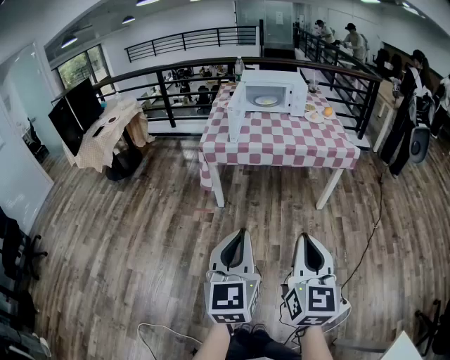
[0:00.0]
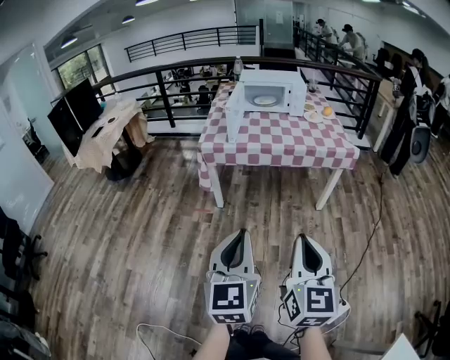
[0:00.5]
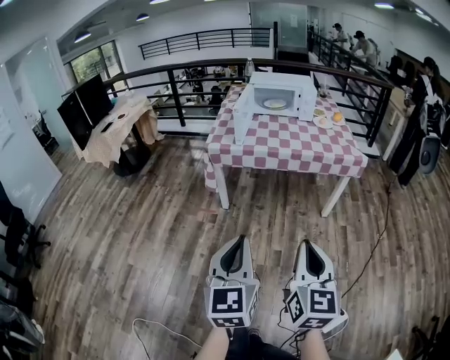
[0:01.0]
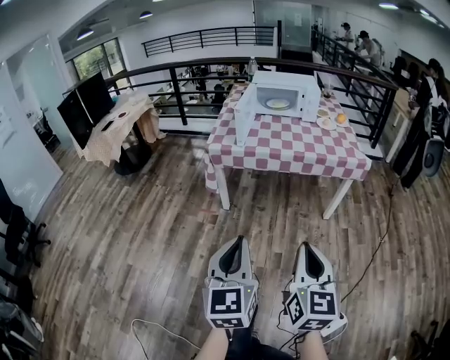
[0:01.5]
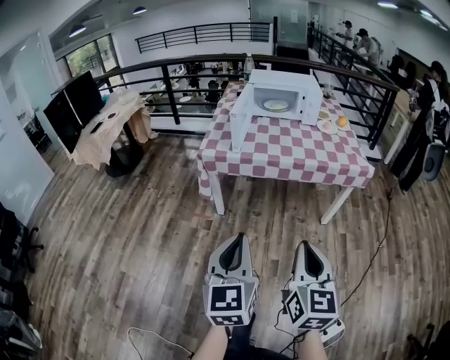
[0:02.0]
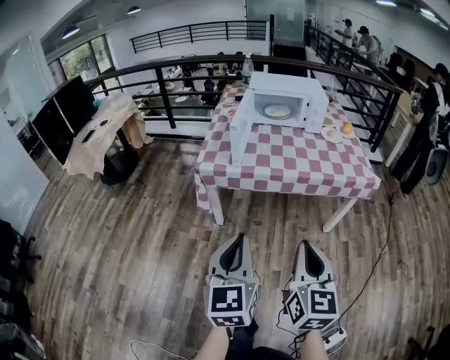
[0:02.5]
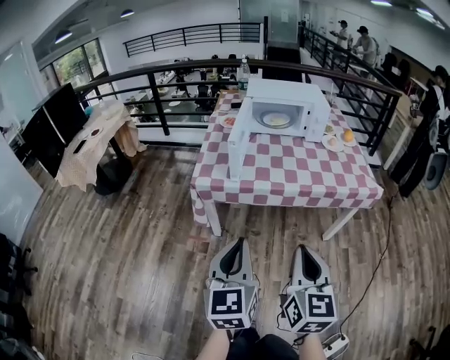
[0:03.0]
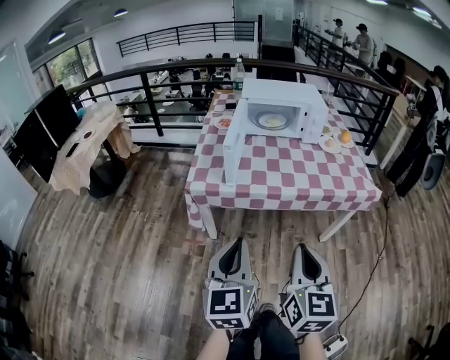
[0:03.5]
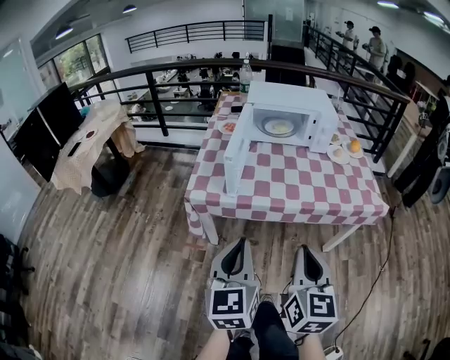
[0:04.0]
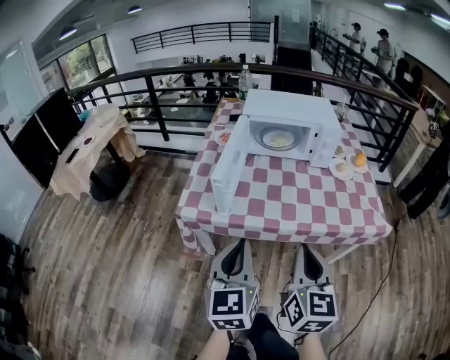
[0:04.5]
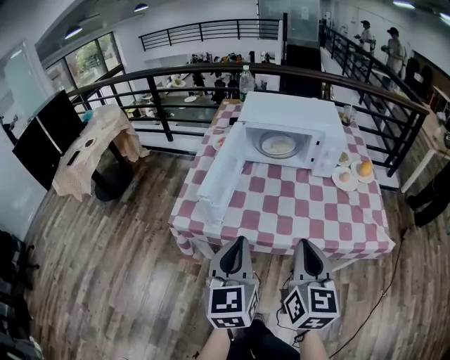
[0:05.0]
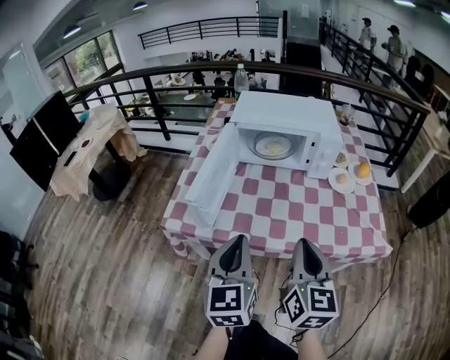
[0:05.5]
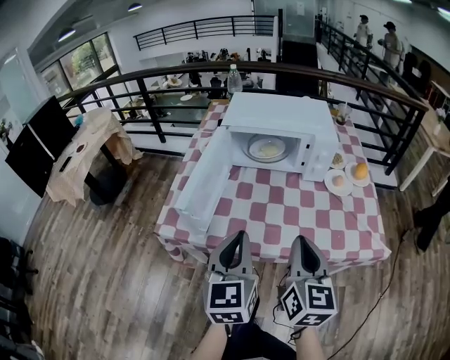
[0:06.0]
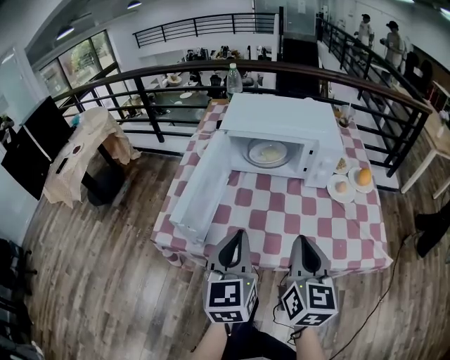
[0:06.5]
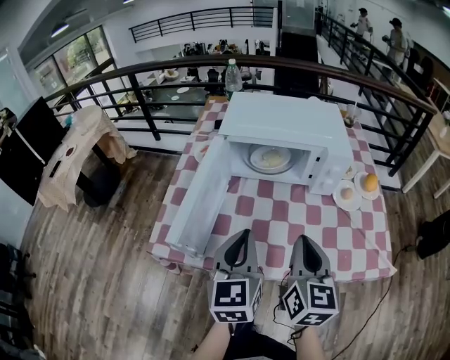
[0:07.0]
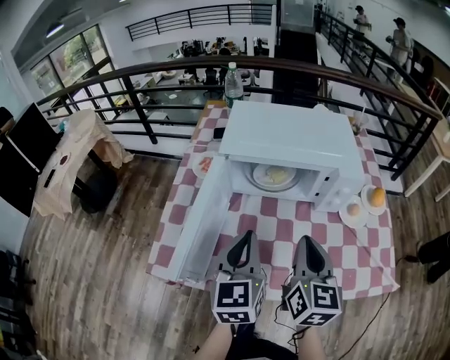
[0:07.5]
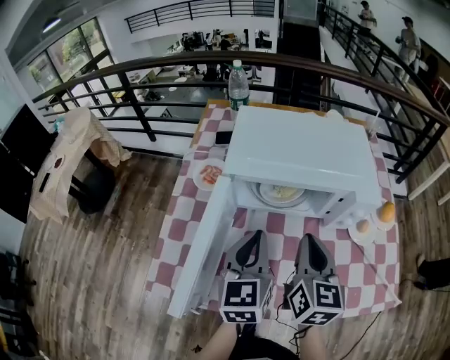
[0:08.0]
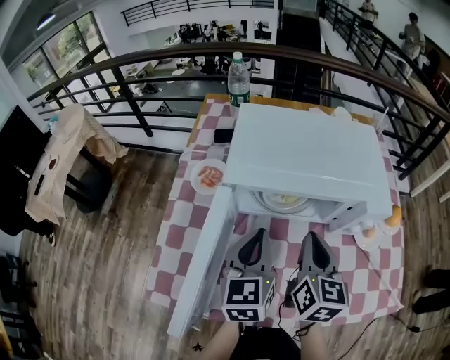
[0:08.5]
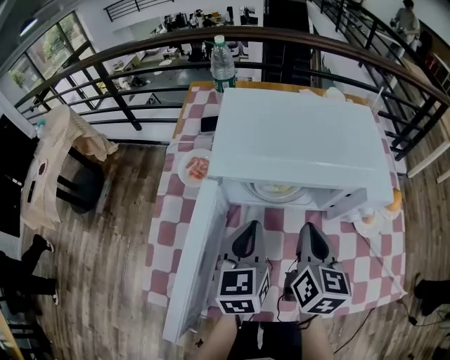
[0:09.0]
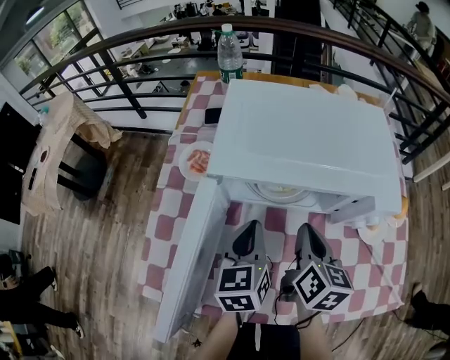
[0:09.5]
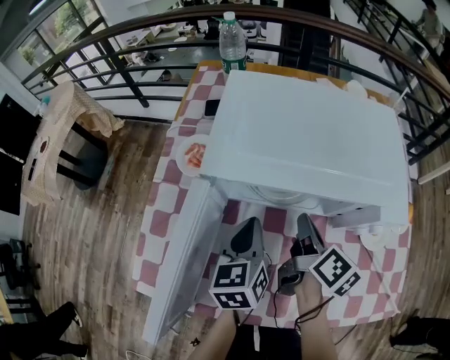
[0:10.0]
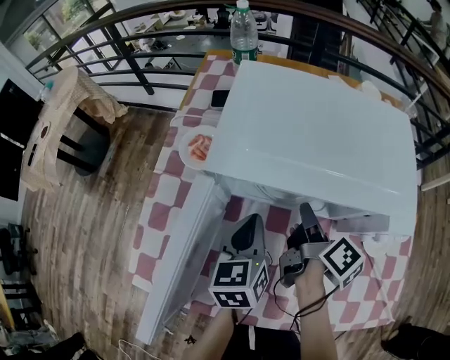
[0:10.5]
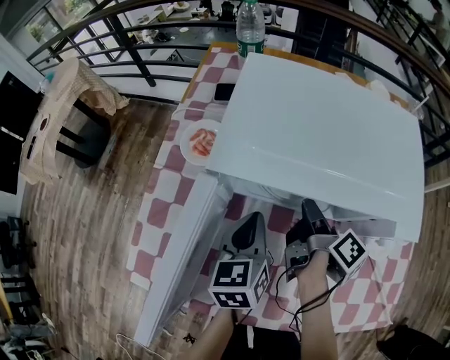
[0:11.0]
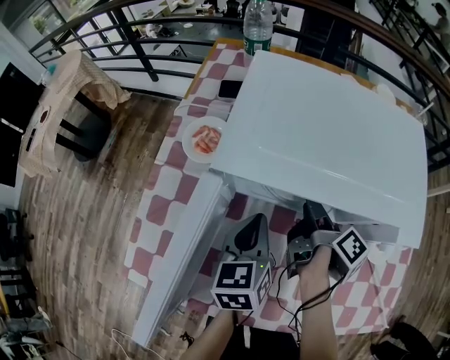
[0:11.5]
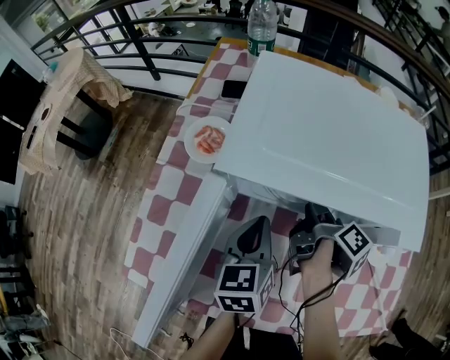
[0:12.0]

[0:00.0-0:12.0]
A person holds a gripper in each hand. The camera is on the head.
0:00.0 to 0:02.0: Both grippers move forward, roughly 15 cm.
0:02.0 to 0:04.0: The two grippers go approximately 25 cm forward.
0:04.0 to 0:06.0: The two grippers go some 25 cm forward and to the right.
0:06.0 to 0:08.0: The two grippers go approximately 25 cm forward.
0:08.0 to 0:10.0: Both grippers travel together downward and forward, some 15 cm. The right gripper rolls clockwise, seen from behind, by about 40 degrees.
0:10.0 to 0:12.0: The right gripper heads downward, covering about 5 cm, swivels about 30 degrees, and opens.

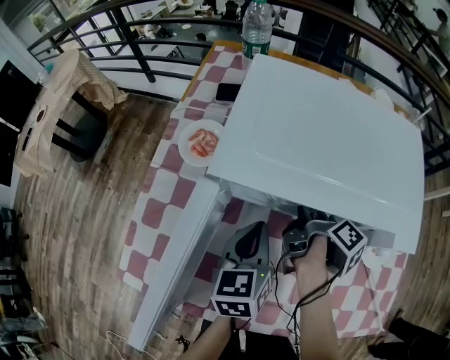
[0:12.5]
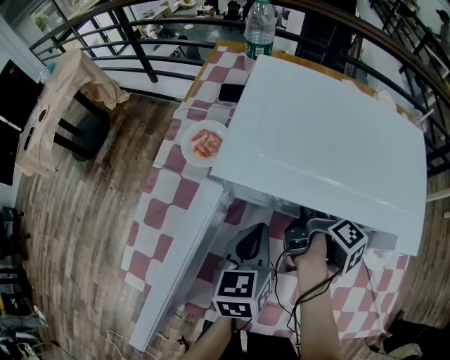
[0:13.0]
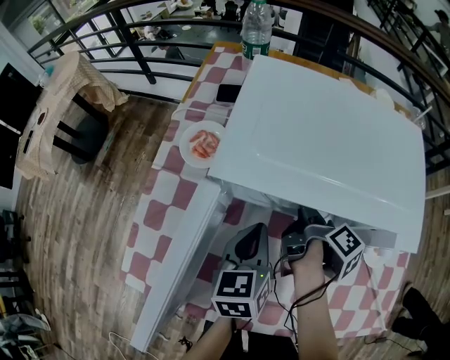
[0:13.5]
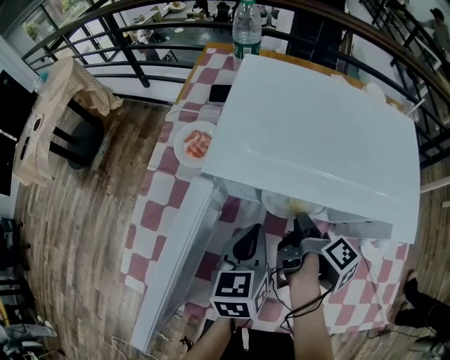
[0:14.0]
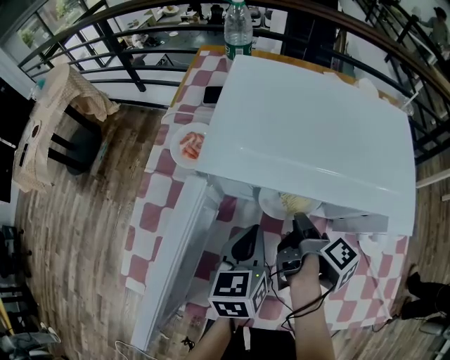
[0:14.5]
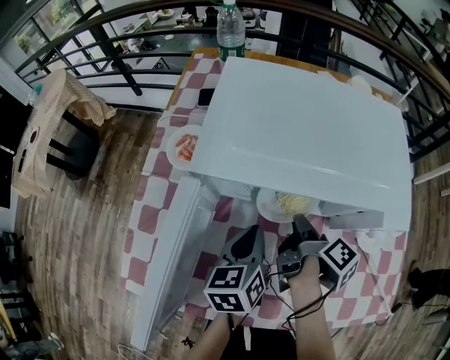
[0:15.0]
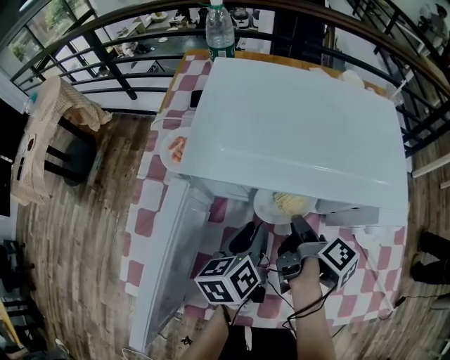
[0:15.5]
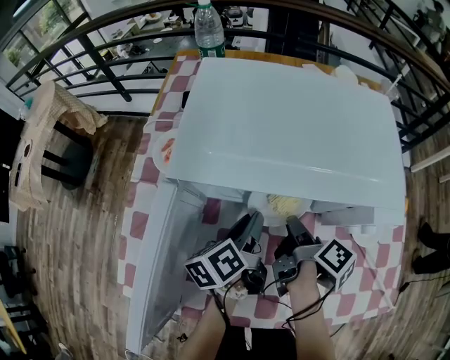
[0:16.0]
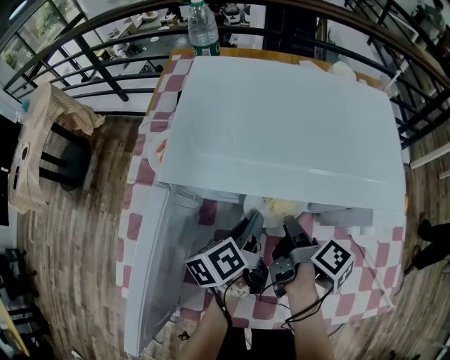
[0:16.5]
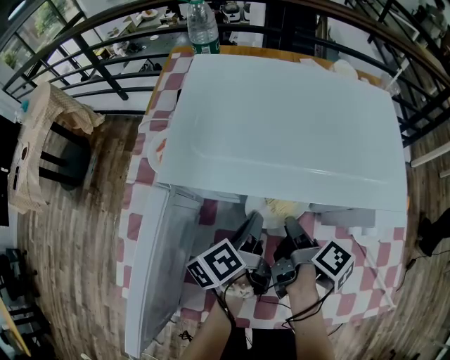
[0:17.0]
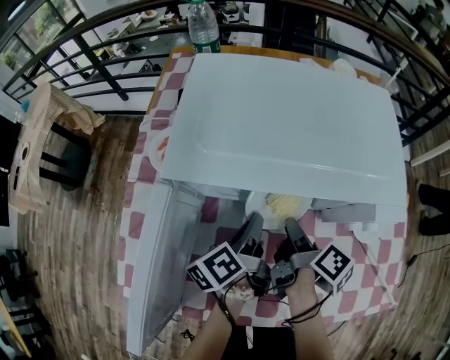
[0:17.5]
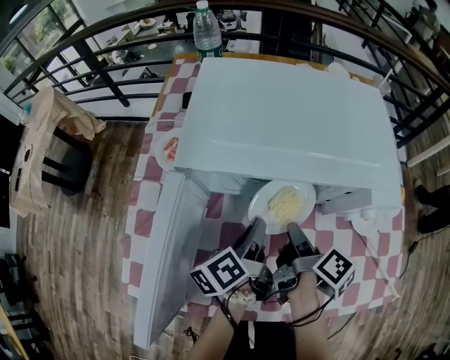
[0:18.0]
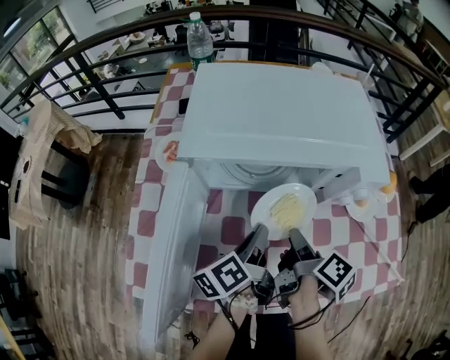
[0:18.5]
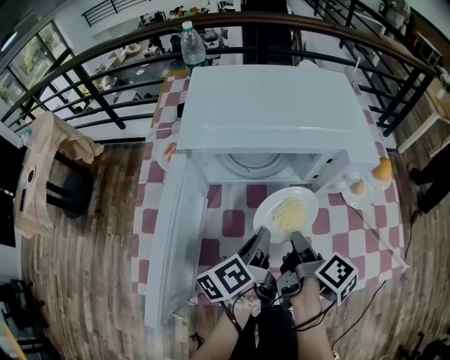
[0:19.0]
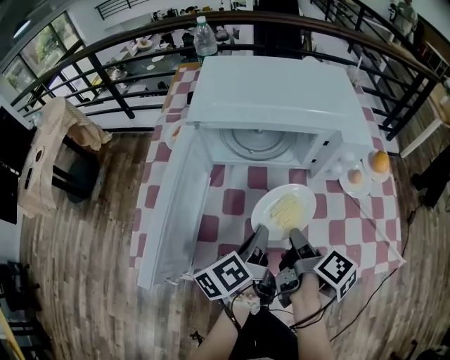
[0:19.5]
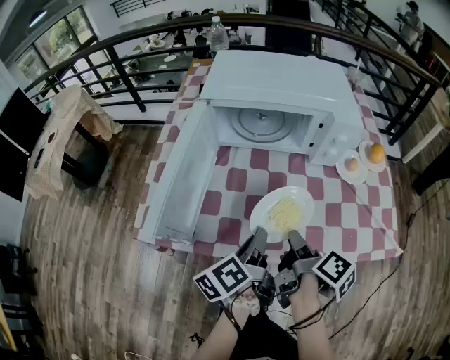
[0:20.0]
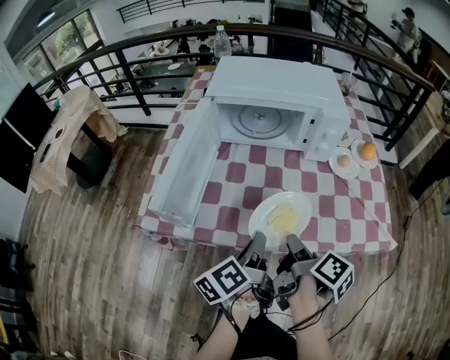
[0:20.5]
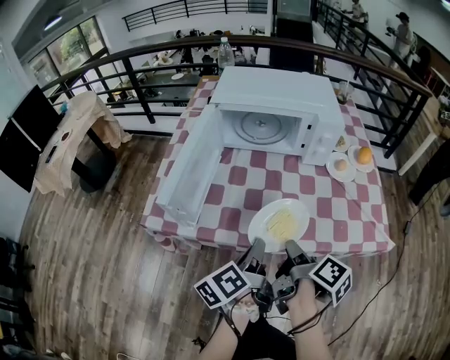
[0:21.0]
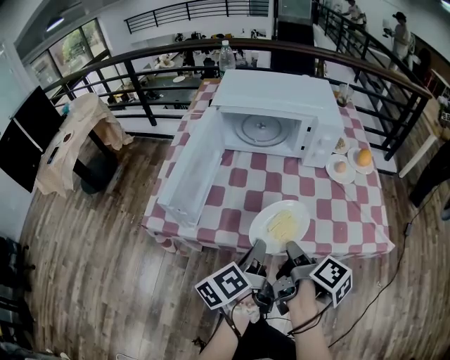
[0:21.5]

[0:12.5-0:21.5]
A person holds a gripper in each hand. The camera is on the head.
0:12.5 to 0:14.5: The right gripper shifts some 5 cm backward, and closes its fingers.
0:14.5 to 0:17.0: The left gripper ends up roughly 5 cm from where it was, twists about 40 degrees counterclockwise, seen from behind, and opens, then closes again.
0:17.0 to 0:19.5: Both grippers travel together backward, some 15 cm.
0:19.5 to 0:21.5: The two grippers go roughly 20 cm backward.

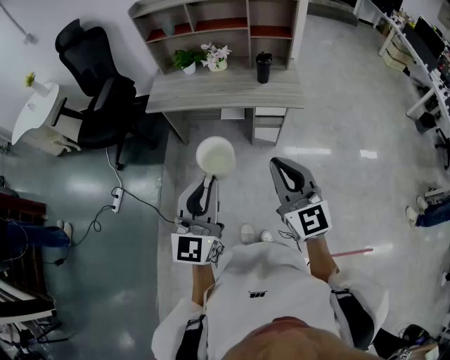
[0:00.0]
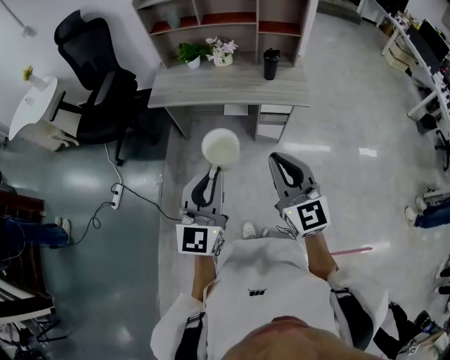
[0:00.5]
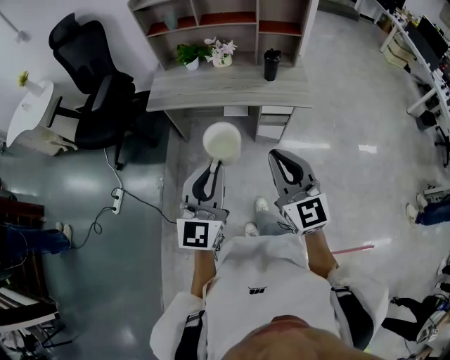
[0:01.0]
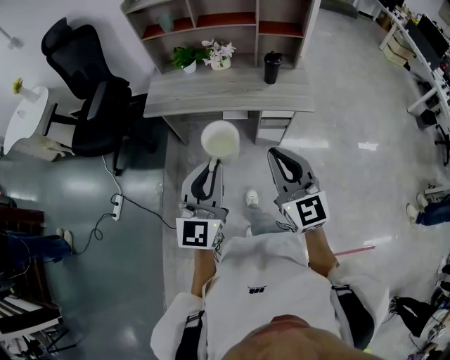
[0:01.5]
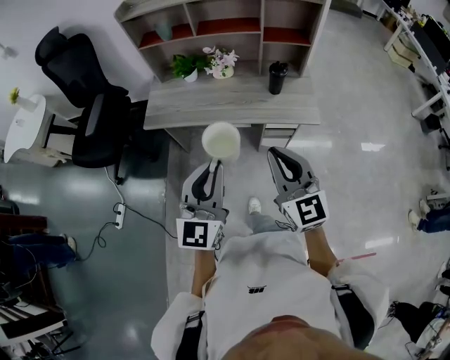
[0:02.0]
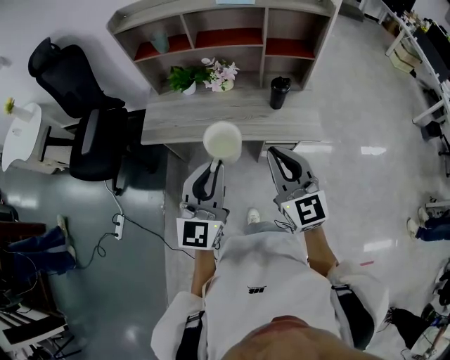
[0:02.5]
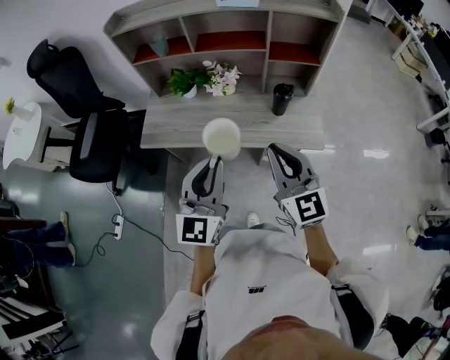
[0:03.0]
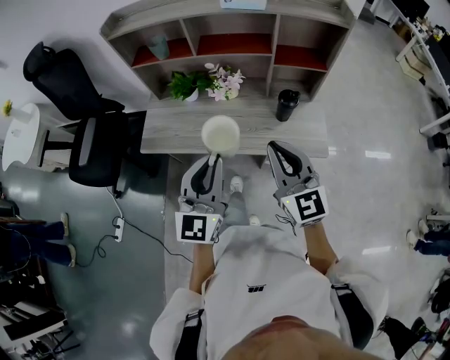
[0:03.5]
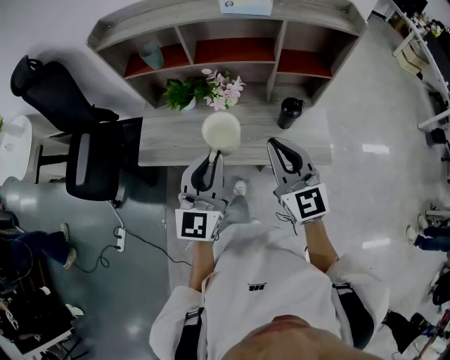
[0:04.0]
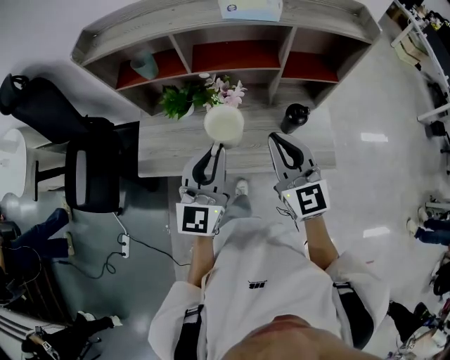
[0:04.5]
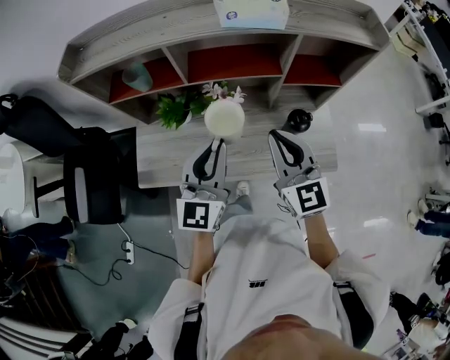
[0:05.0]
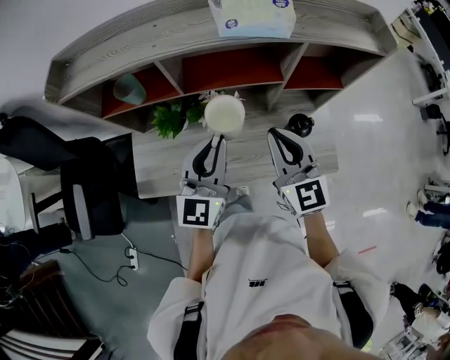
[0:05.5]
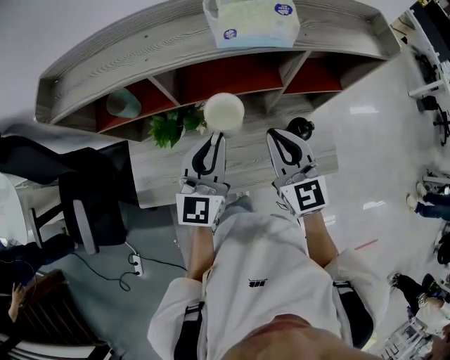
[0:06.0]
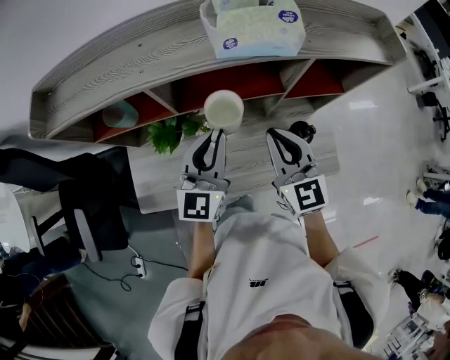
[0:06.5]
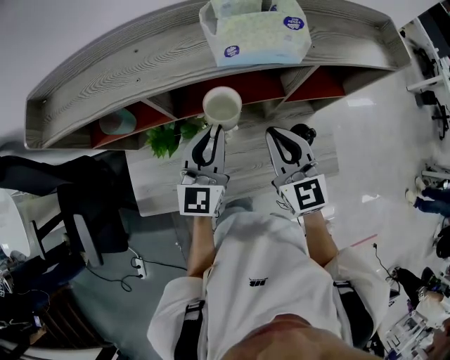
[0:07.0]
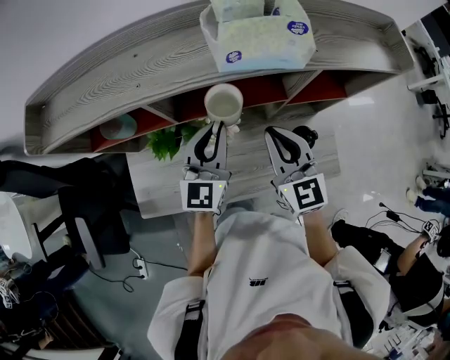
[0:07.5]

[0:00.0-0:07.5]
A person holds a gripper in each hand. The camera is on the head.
0:00.0 to 0:02.0: The grippers both shift forward by about 20 cm.
0:02.0 to 0:04.0: The grippers both shift forward by roughly 25 cm.
0:04.0 to 0:05.5: The grippers both shift forward by roughly 15 cm.
0:05.5 to 0:07.5: Both grippers travel together forward, about 10 cm.
